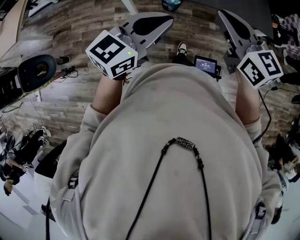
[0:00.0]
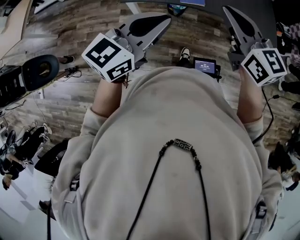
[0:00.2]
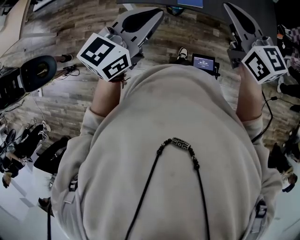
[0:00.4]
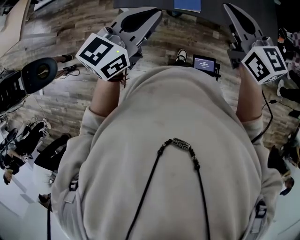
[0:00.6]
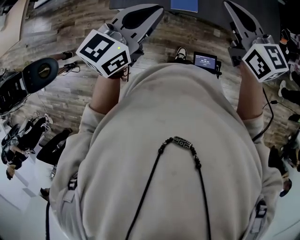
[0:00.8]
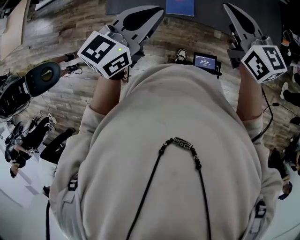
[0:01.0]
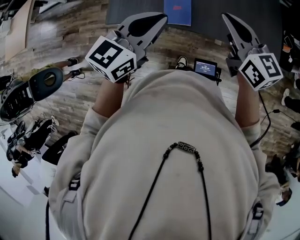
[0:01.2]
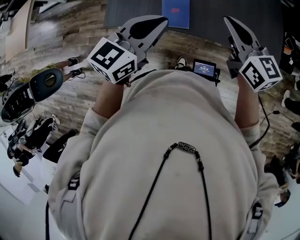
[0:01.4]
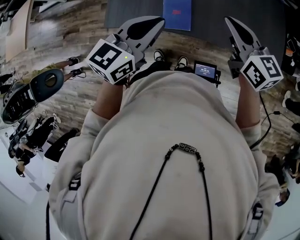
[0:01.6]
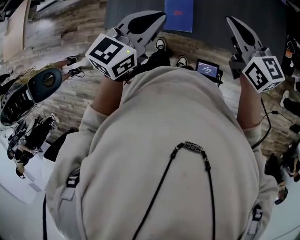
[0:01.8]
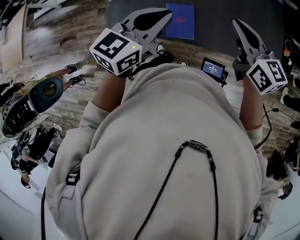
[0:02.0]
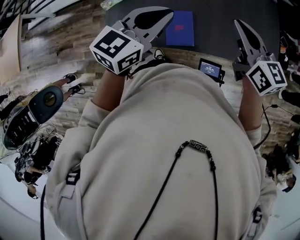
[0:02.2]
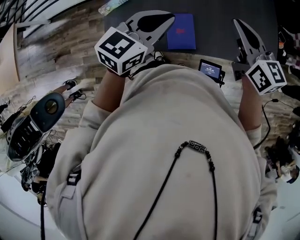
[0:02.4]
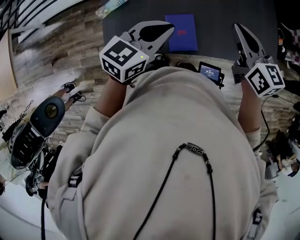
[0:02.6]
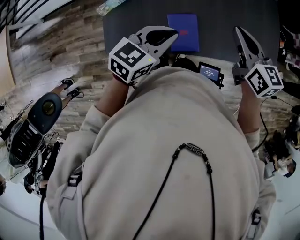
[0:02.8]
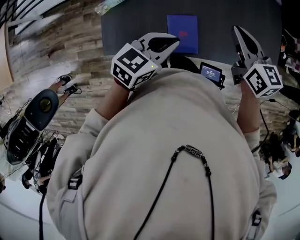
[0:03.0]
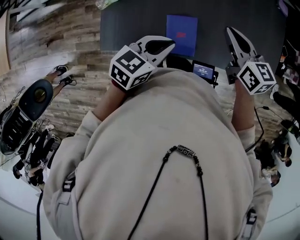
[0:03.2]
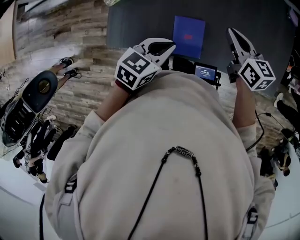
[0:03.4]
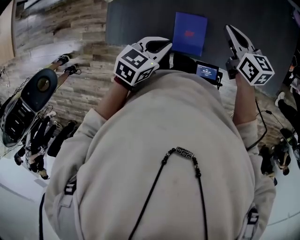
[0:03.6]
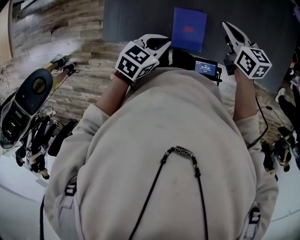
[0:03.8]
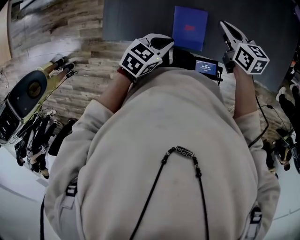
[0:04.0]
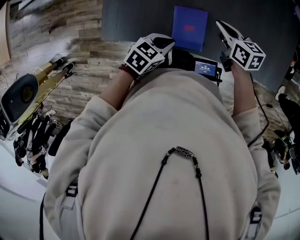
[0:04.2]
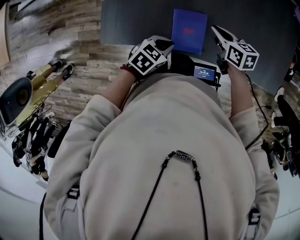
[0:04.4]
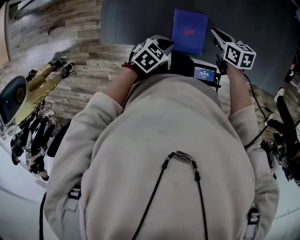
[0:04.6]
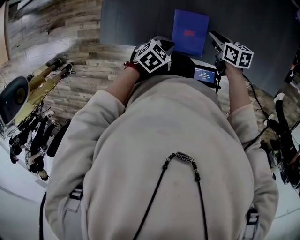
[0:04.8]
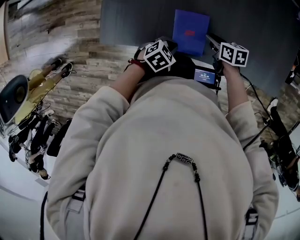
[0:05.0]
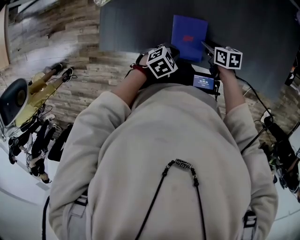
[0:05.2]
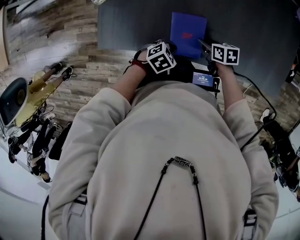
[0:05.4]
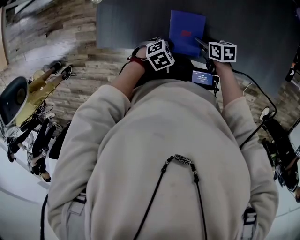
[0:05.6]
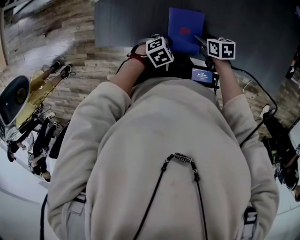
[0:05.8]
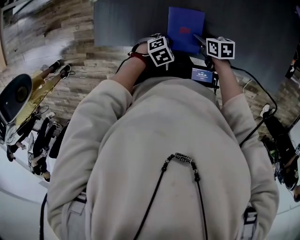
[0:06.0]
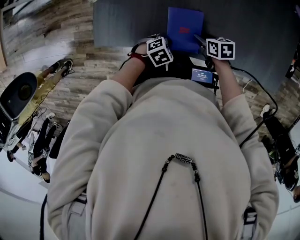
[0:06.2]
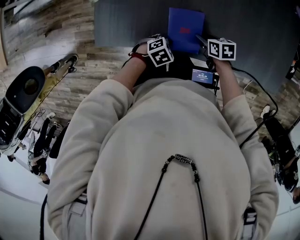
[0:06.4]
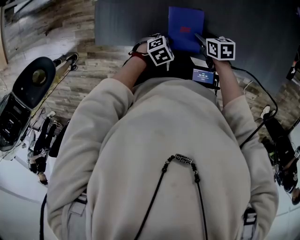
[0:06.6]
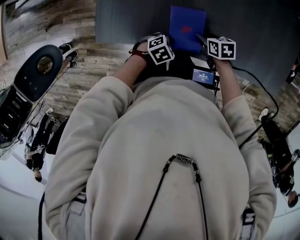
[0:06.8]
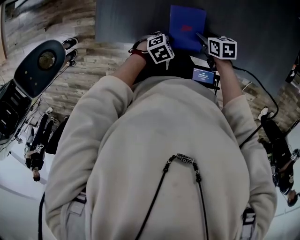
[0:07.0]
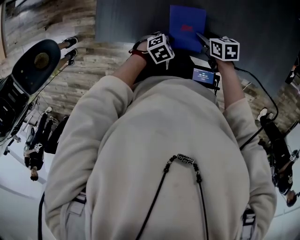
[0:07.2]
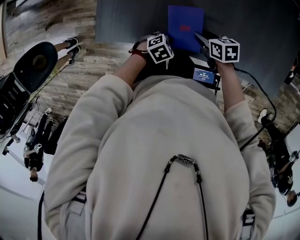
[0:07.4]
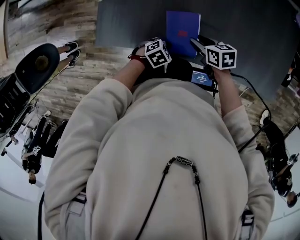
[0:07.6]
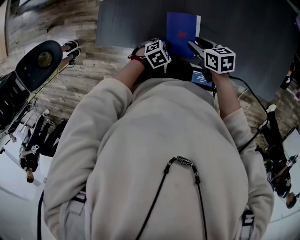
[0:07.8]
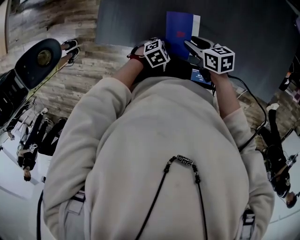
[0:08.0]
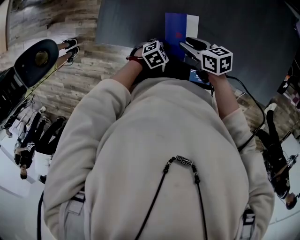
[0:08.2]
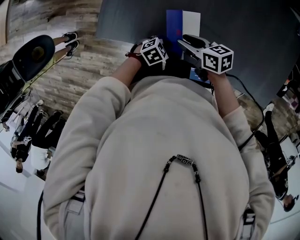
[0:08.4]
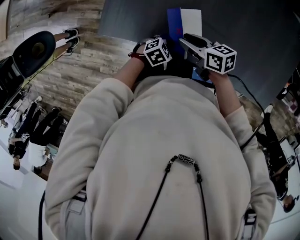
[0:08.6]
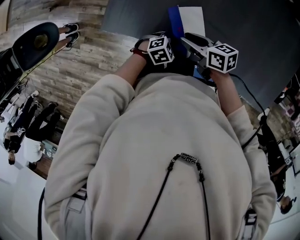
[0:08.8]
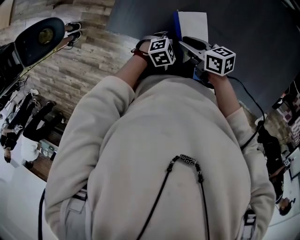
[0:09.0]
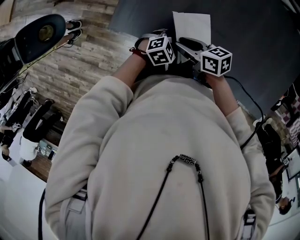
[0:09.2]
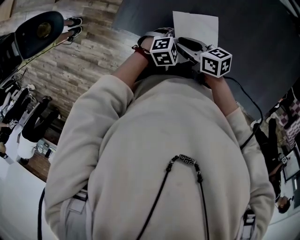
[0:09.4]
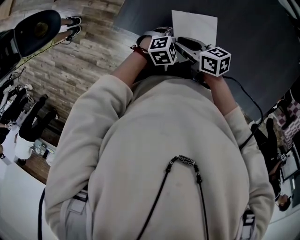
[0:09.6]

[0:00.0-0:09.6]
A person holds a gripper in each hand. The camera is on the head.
0:00.0 to 0:01.6: The left gripper goes approximately 25 cm forward and to the right; the right gripper heads forward, to the right and downward, covering roughly 30 cm.
0:01.6 to 0:03.2: The left gripper heads downward, covering some 10 cm, and swivels roughly 20 degrees; the right gripper shifts some 5 cm forward.
0:03.2 to 0:04.8: The two grippers go roughly 20 cm downward. The left gripper rotates some 30 degrees, while the right gripper changes its angle by some 30 degrees.
0:04.8 to 0:06.4: Both grippers move downward, approximately 5 cm. The right gripper opens up.
0:06.4 to 0:08.0: The right gripper heads upward, covering some 10 cm.
0:08.0 to 0:09.6: The right gripper shifts by some 20 cm; the left gripper ends up roughly 10 cm from where it was.

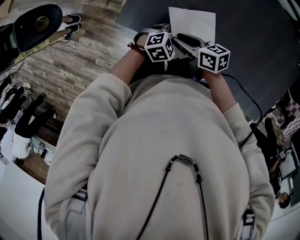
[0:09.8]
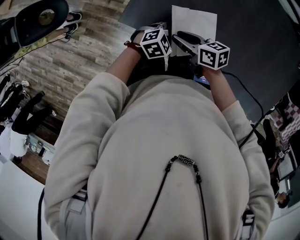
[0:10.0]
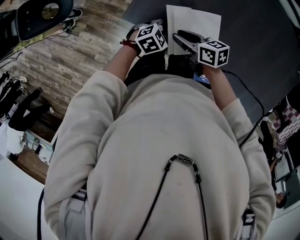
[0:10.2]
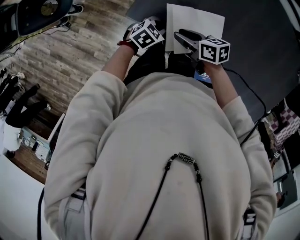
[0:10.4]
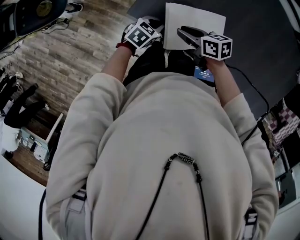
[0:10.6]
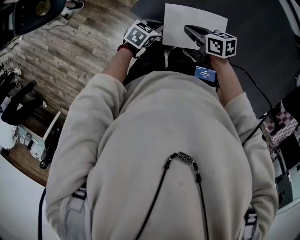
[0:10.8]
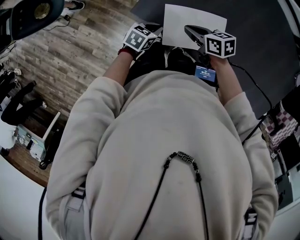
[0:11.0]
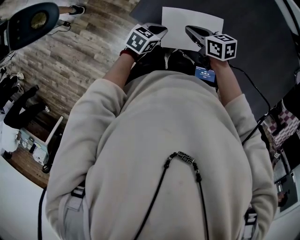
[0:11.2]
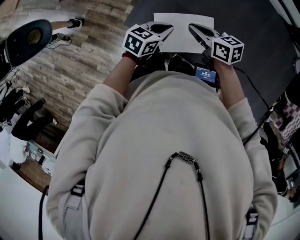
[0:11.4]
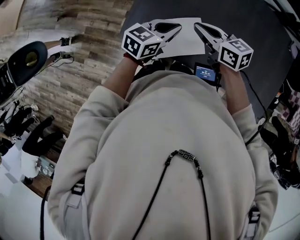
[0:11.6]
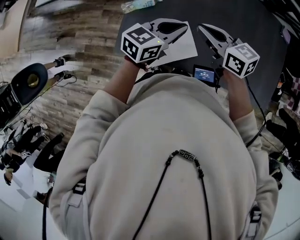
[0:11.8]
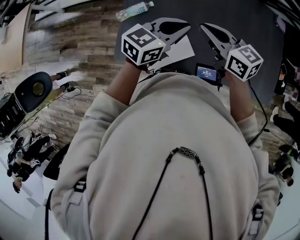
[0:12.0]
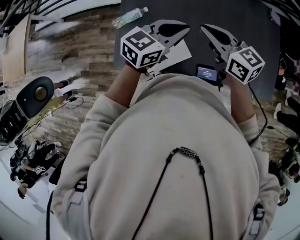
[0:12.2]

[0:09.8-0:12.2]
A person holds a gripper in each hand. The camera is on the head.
0:09.8 to 0:11.0: The right gripper ends up approximately 5 cm from where it was, and closes its fingers; the left gripper ends up some 15 cm from where it was, and twists some 50 degrees counterclockwise, seen from behind.
0:11.0 to 0:12.2: The two grippers go some 30 cm upward. The right gripper rotates about 50 degrees, while the left gripper tips its fingers upward by about 40 degrees.

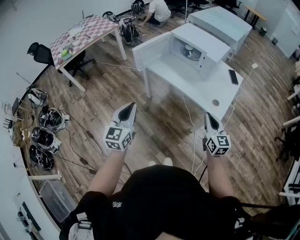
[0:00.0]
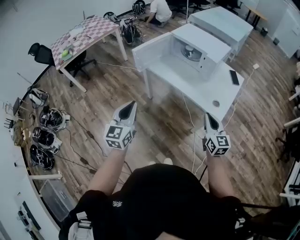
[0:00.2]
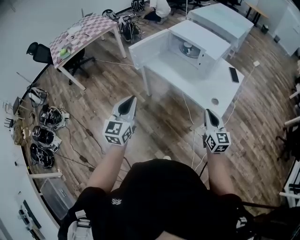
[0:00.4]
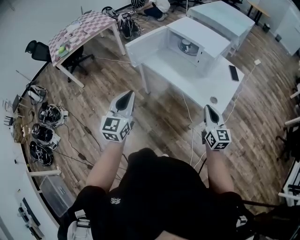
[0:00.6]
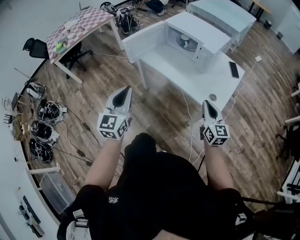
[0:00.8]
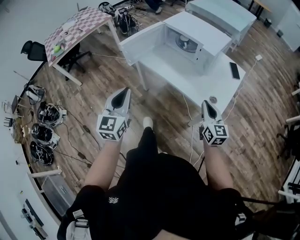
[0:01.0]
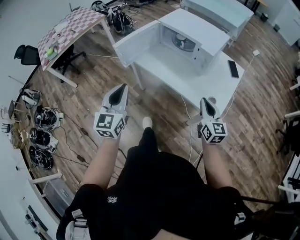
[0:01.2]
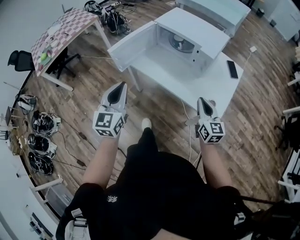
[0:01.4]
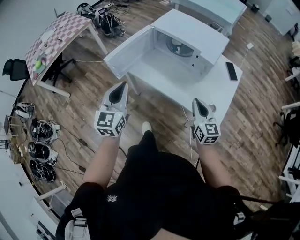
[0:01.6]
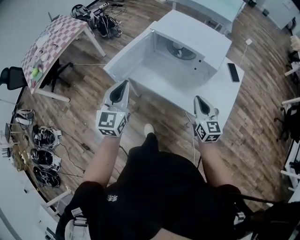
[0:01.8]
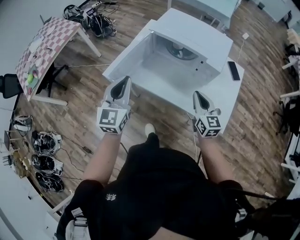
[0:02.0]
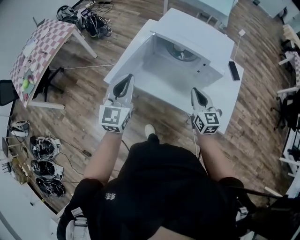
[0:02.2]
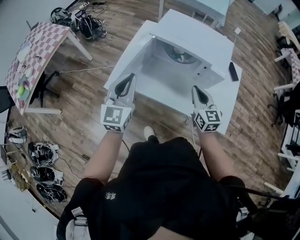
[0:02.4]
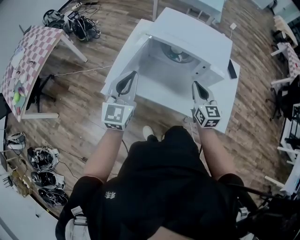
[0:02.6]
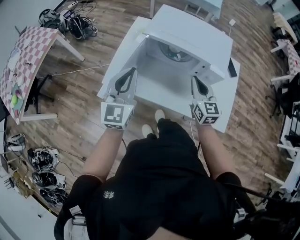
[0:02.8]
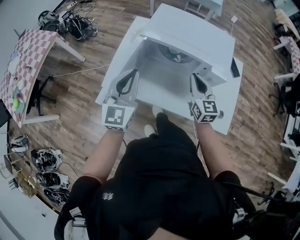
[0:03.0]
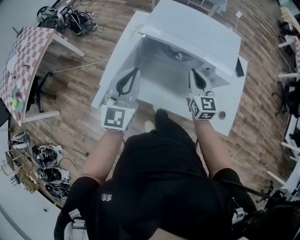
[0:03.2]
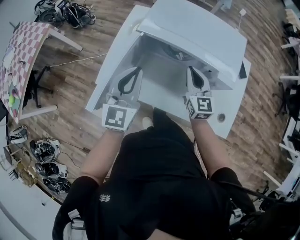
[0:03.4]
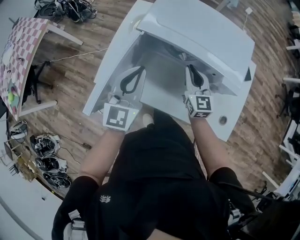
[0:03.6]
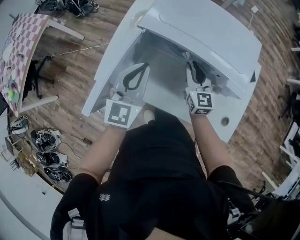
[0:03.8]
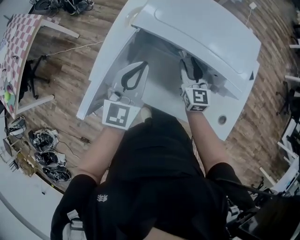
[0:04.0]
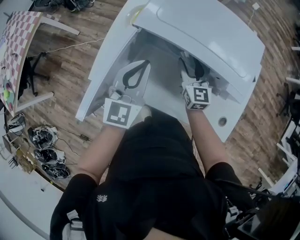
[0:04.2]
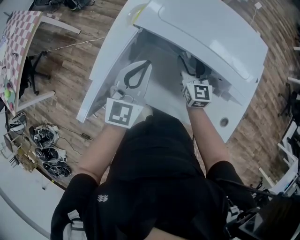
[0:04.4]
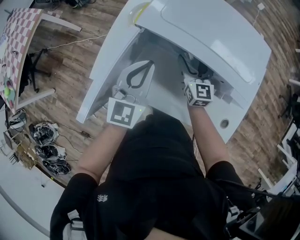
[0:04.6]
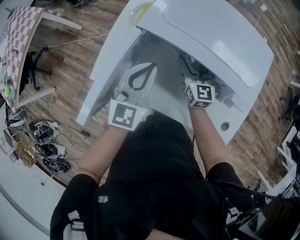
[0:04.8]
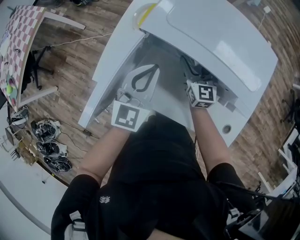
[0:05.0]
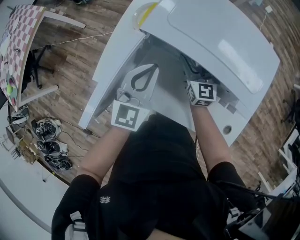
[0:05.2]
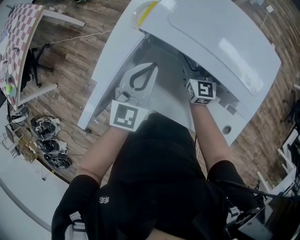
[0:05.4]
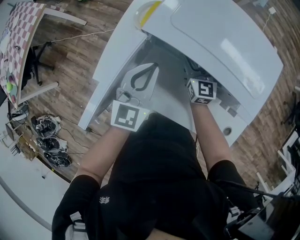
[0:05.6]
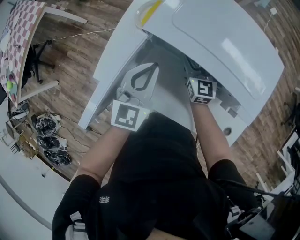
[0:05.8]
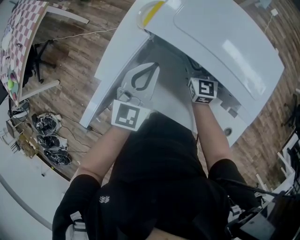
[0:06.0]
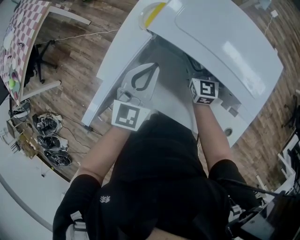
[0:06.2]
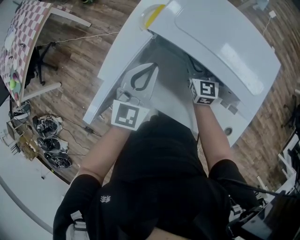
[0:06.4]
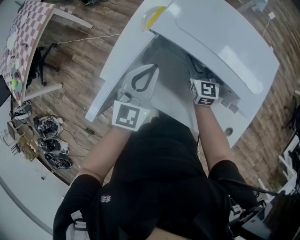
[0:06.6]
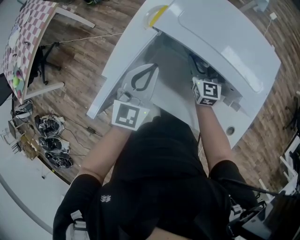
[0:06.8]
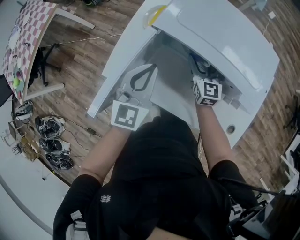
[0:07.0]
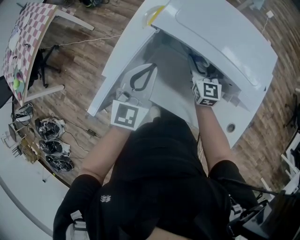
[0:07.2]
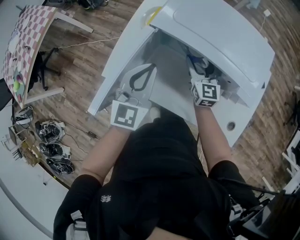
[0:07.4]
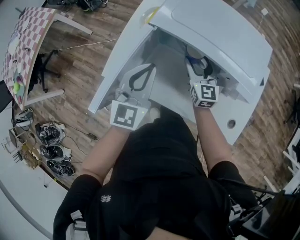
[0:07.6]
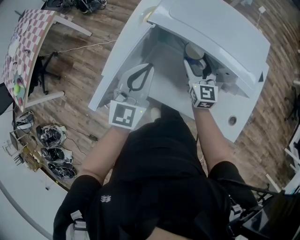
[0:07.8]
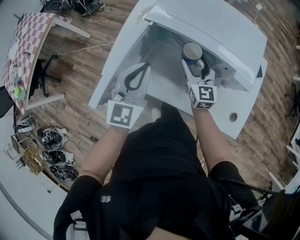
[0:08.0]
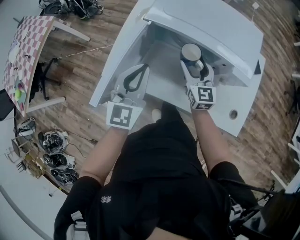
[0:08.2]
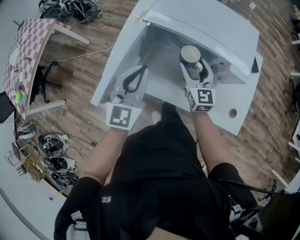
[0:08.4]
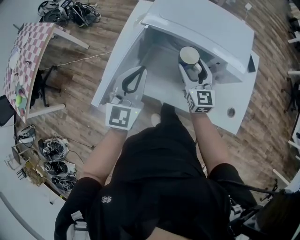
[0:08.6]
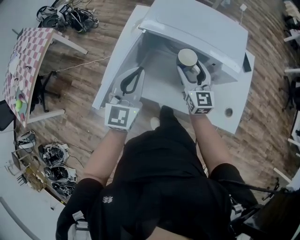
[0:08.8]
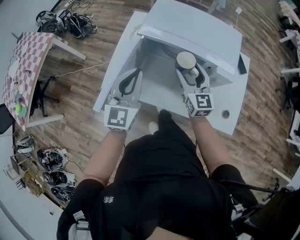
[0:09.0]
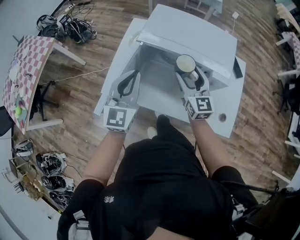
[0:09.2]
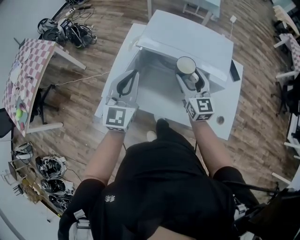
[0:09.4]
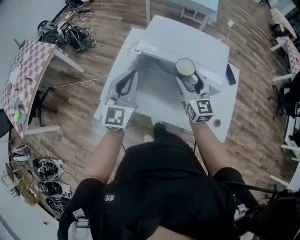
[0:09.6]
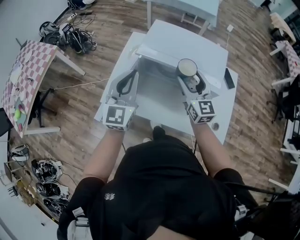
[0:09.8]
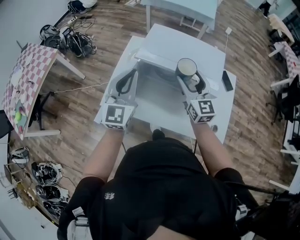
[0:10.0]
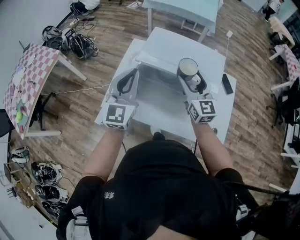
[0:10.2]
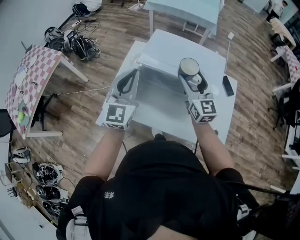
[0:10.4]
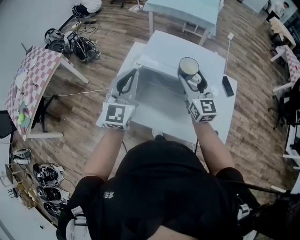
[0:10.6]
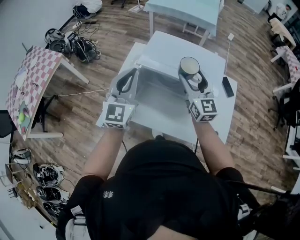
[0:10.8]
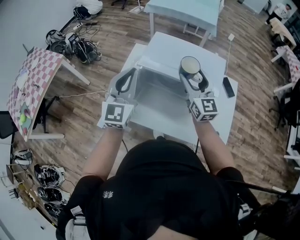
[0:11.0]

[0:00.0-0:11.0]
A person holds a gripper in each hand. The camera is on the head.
0:00.0 to 0:01.6: Both grippers move forward, approximately 25 cm.
0:01.6 to 0:03.2: The two grippers go some 30 cm forward.
0:03.2 to 0:04.8: The left gripper moves downward and forward, roughly 15 cm; the right gripper moves forward and downward, about 20 cm, and opens its fingers.
0:04.8 to 0:06.2: The grippers move only a little.
0:06.2 to 0:07.8: The left gripper is displaced backward by some 10 cm. Meanwhile the right gripper shifts roughly 10 cm backward and upward.
0:07.8 to 0:09.4: The right gripper shifts about 15 cm upward and backward. Meanwhile the left gripper shifts roughly 10 cm upward.
0:09.4 to 0:11.0: The grippers both shift upward by approximately 10 cm.
